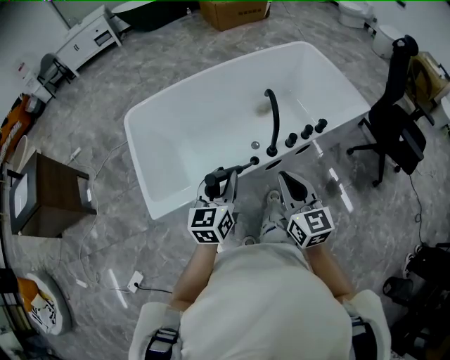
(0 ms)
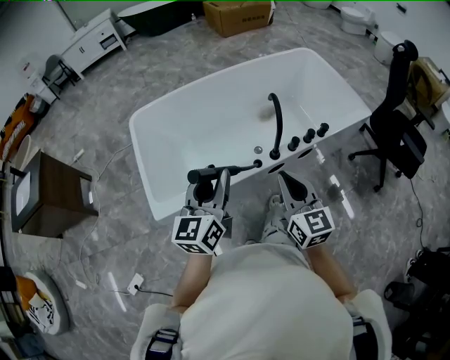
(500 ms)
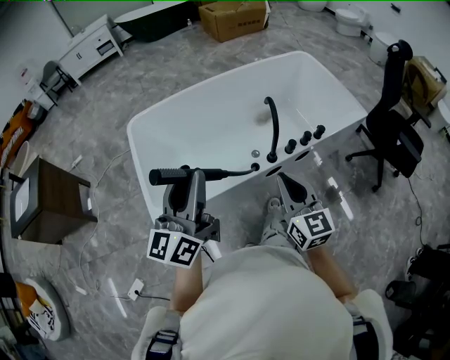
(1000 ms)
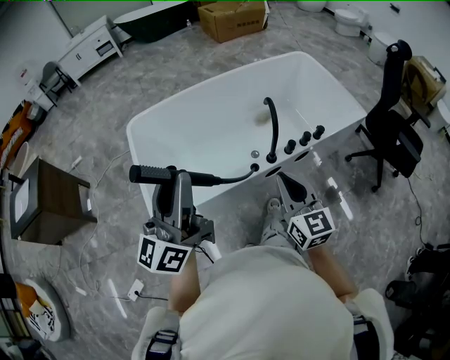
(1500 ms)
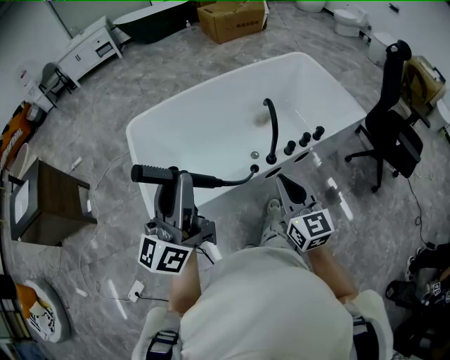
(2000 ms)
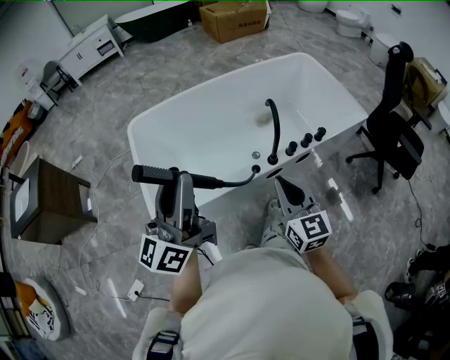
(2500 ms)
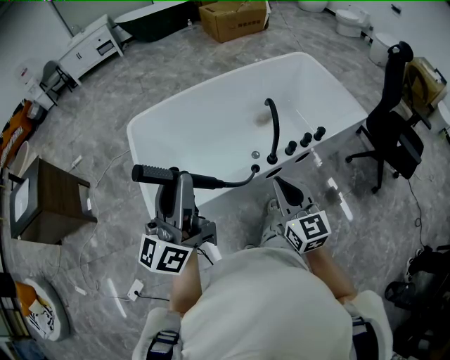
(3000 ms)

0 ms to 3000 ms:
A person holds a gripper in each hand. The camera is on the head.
0 ms to 1500 ms: The left gripper is displaced upward and to the left by about 20 cm, and points its fingers about 40 degrees further upward.
1500 ms to 3000 ms: The grippers make only small movements.

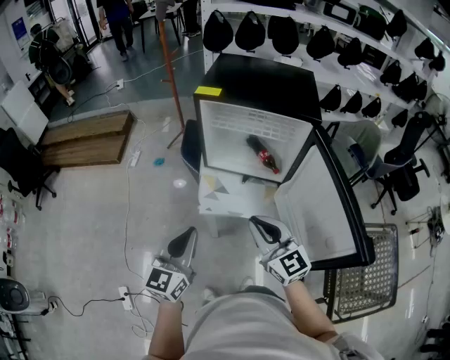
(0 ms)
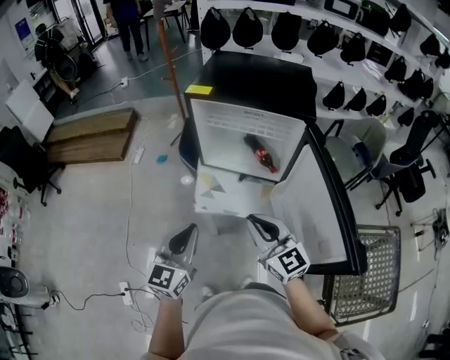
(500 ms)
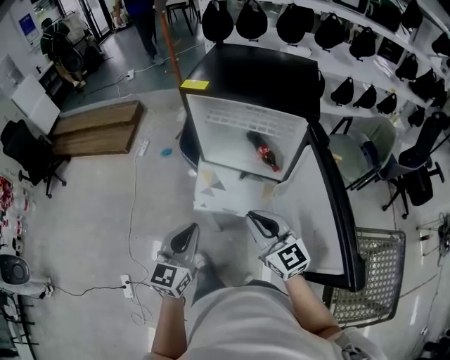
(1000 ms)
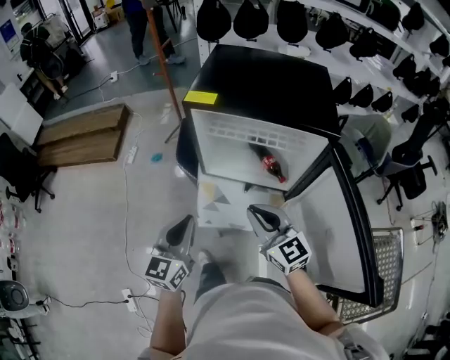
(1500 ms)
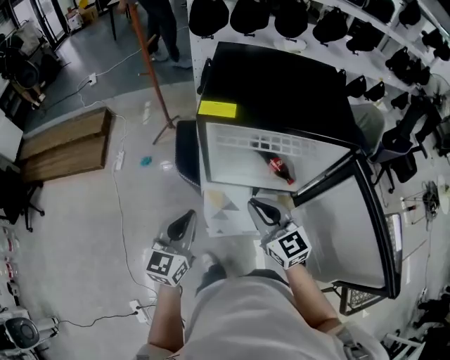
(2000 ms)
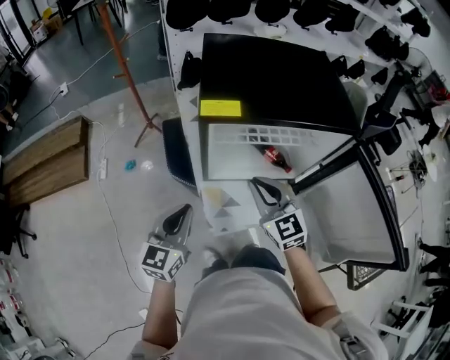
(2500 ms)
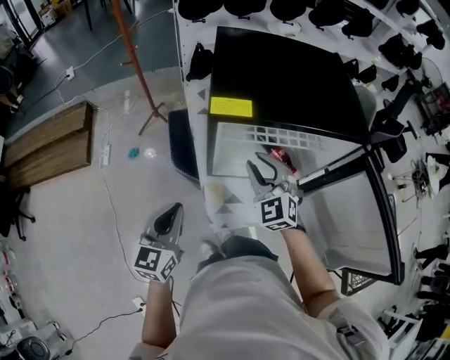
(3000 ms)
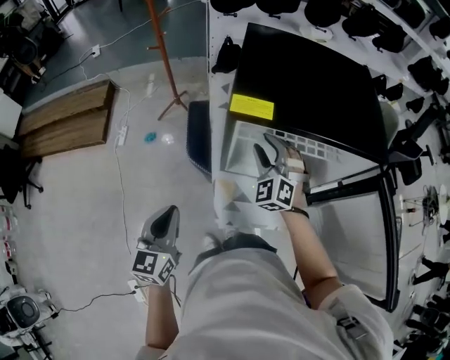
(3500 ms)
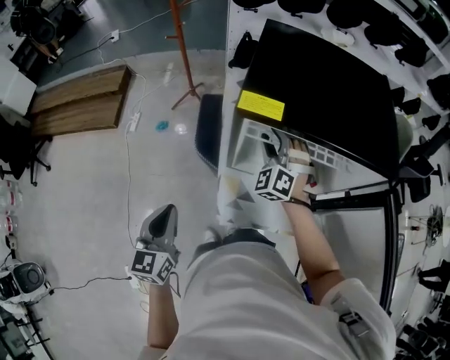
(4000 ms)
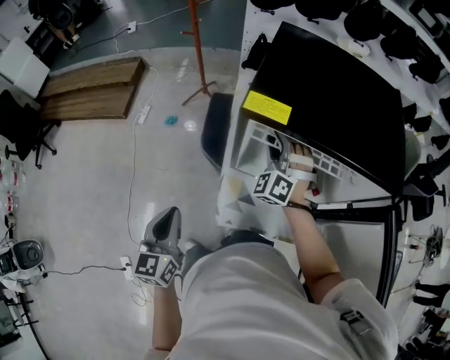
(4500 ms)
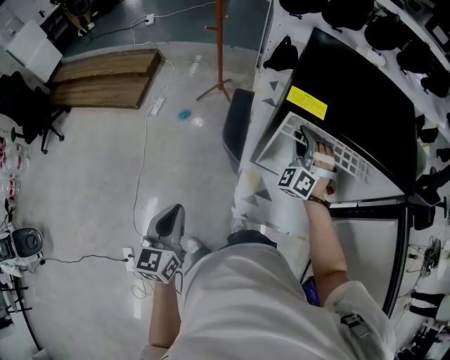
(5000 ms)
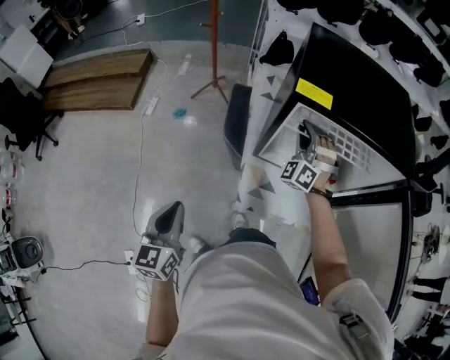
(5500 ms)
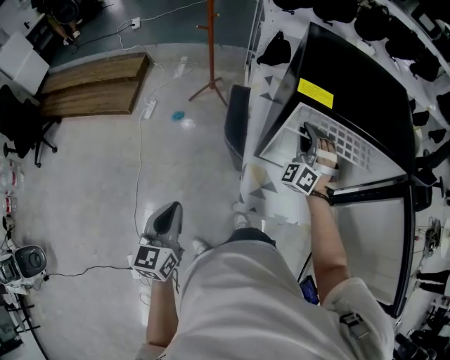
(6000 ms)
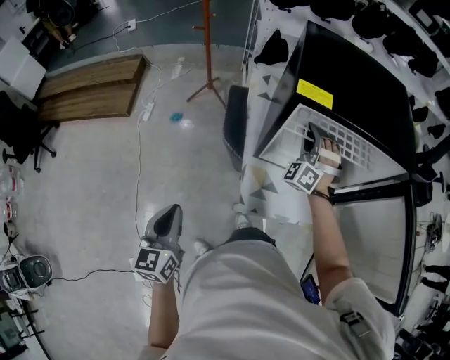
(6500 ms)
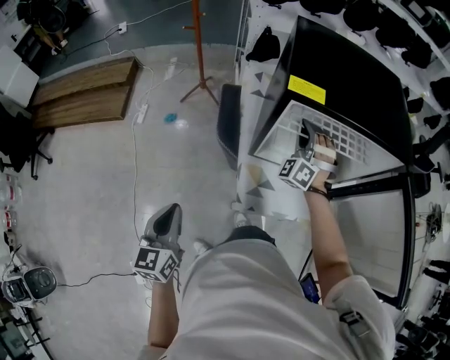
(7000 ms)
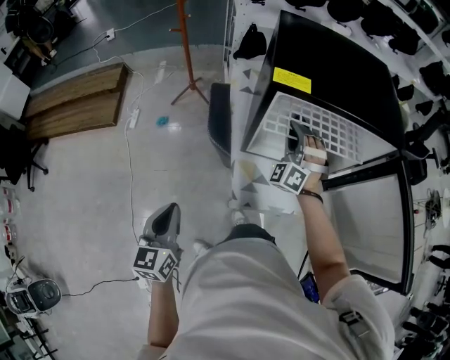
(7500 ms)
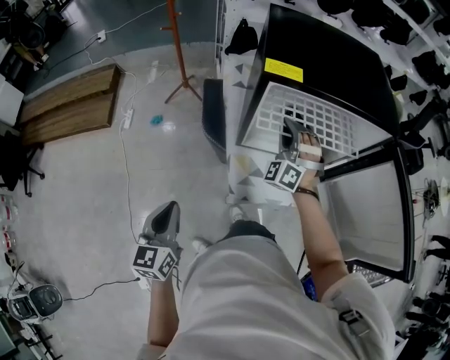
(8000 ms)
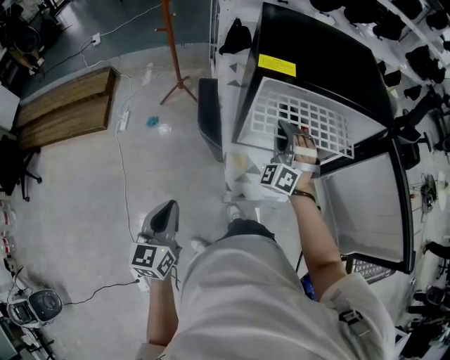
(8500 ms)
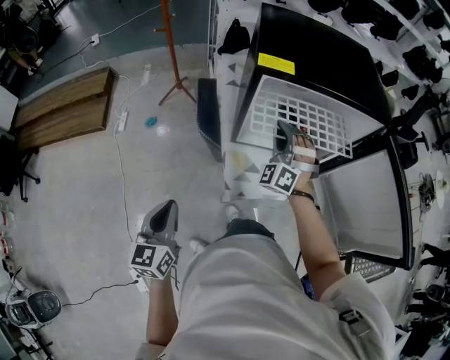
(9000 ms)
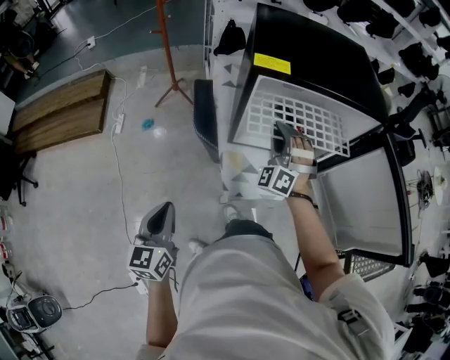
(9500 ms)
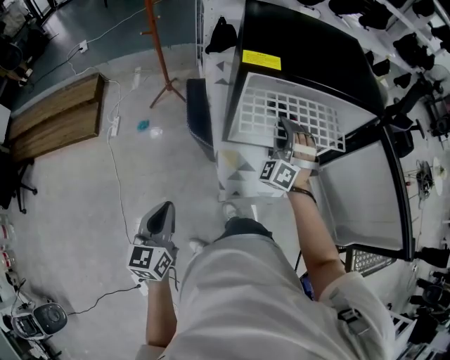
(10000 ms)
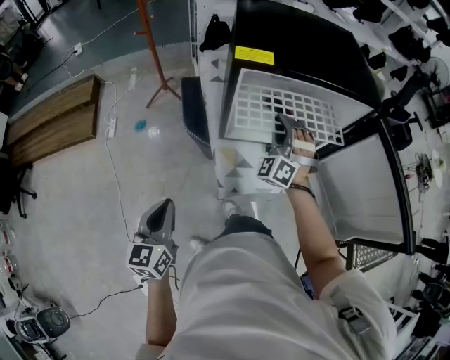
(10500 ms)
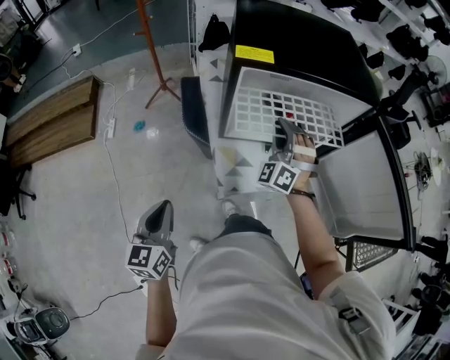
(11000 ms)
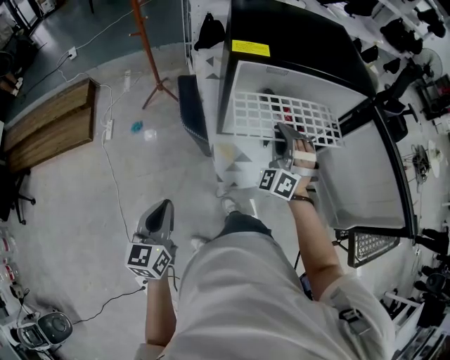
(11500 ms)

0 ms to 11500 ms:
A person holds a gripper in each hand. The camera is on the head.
0 ms to 2000 ms: Both grippers move forward, approximately 20 cm.
2000 ms to 4000 ms: The right gripper goes roughly 20 cm forward, rolls counterclockwise, seen from behind, by approximately 60 degrees, and opens its fingers, while the left gripper moves to the left, some 10 cm.
4000 ms to 6000 ms: The right gripper closes. Meanwhile the left gripper travels to the left and backward by some 10 cm.
6000 ms to 7500 ms: The grippers make only small movements.
7500 ms to 9500 ms: The right gripper moves backward, approximately 5 cm.
9500 ms to 11500 ms: The right gripper shifts by roughly 5 cm.

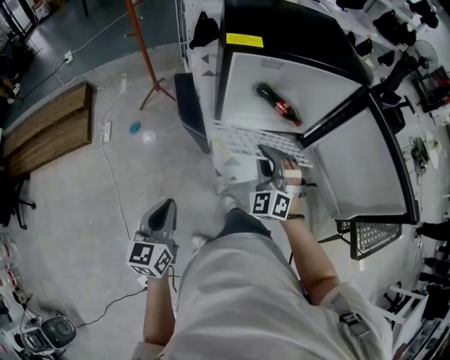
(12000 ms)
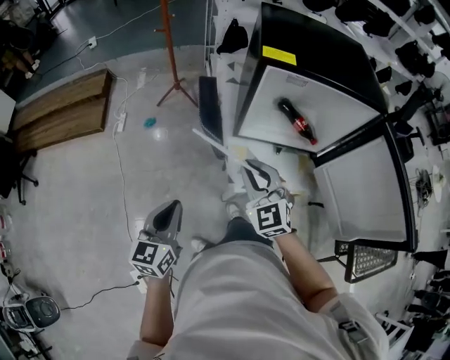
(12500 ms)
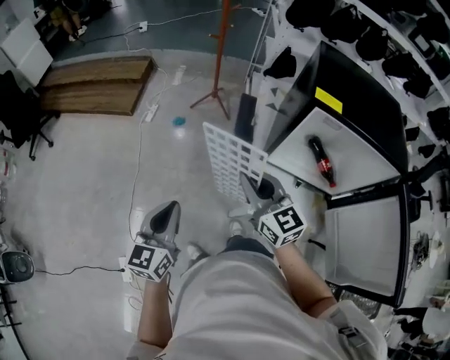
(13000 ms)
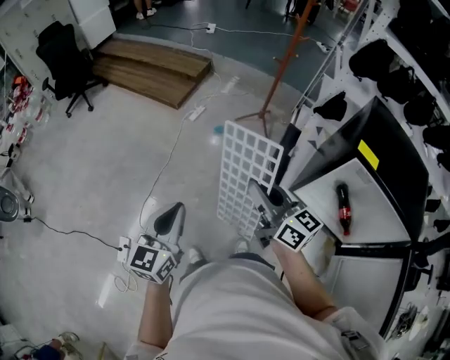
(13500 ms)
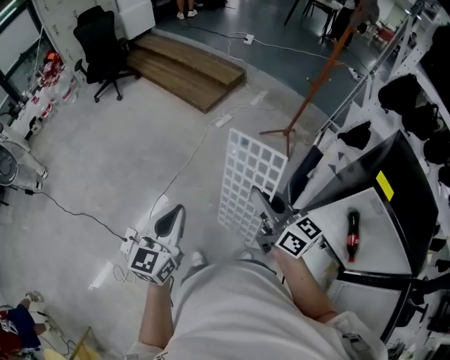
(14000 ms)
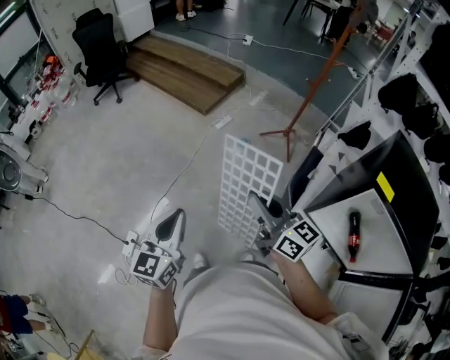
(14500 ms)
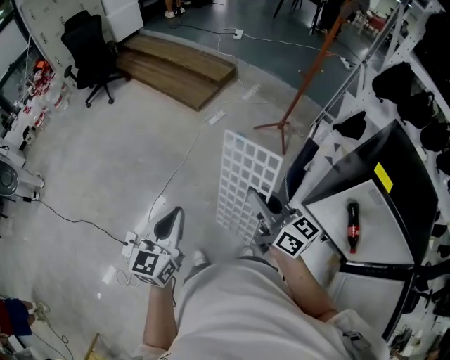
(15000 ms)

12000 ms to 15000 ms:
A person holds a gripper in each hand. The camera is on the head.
12000 ms to 13500 ms: The right gripper changes place by approximately 30 cm, and changes its angle by about 100 degrees; the left gripper moves some 15 cm, and changes its angle by approximately 40 degrees.
13500 ms to 15000 ms: The two grippers go some 5 cm to the left.

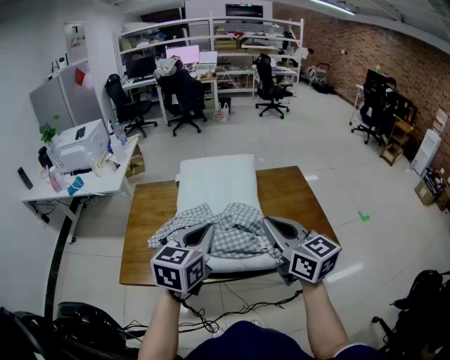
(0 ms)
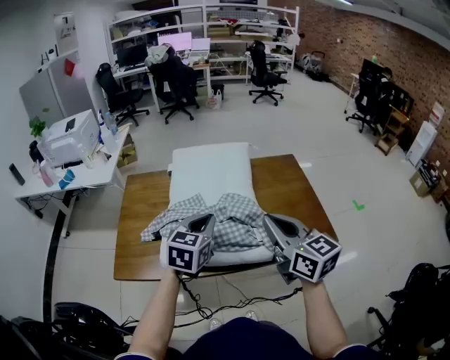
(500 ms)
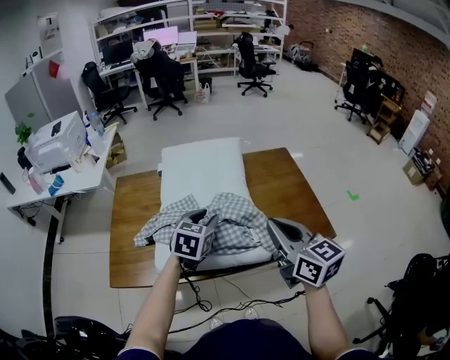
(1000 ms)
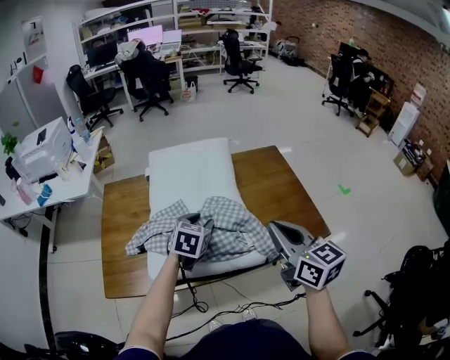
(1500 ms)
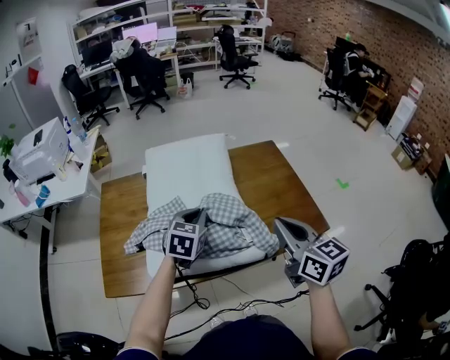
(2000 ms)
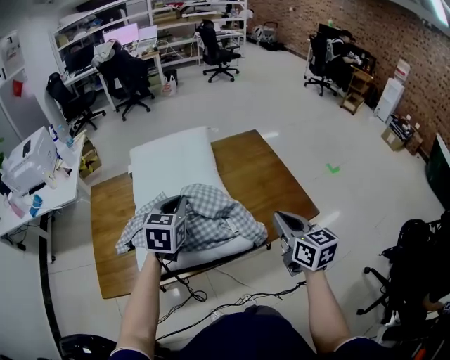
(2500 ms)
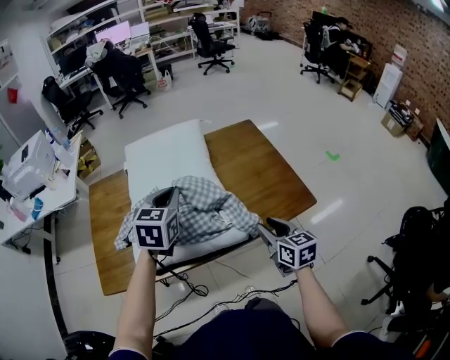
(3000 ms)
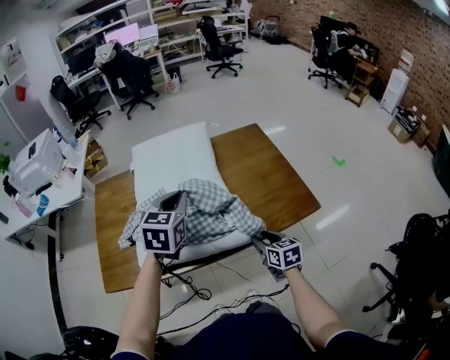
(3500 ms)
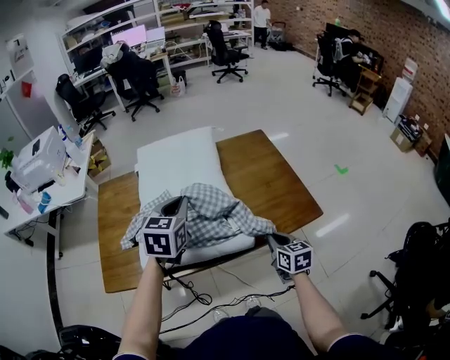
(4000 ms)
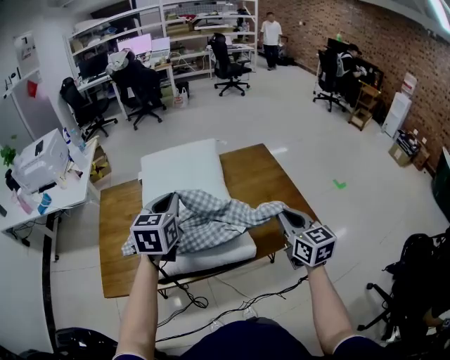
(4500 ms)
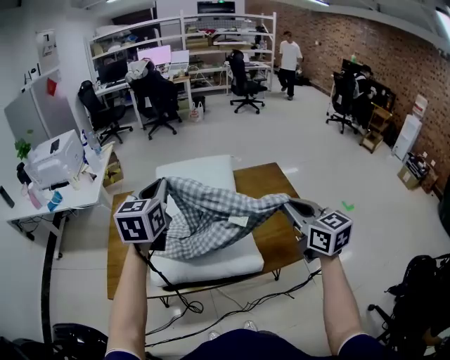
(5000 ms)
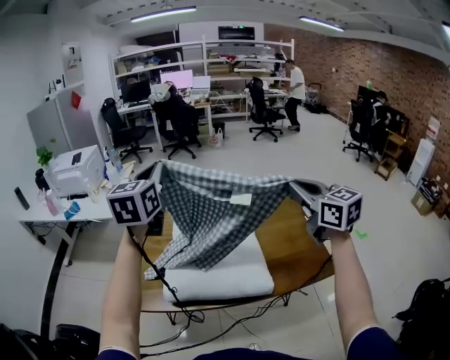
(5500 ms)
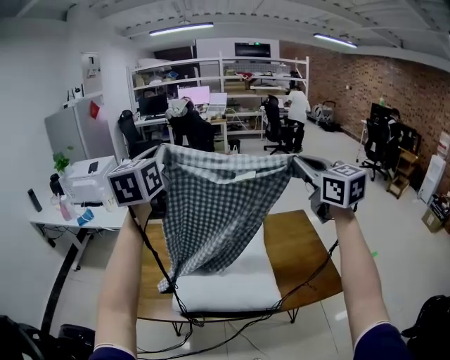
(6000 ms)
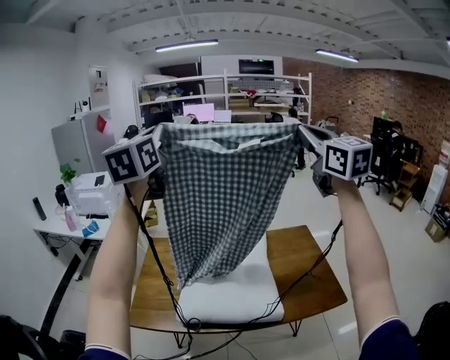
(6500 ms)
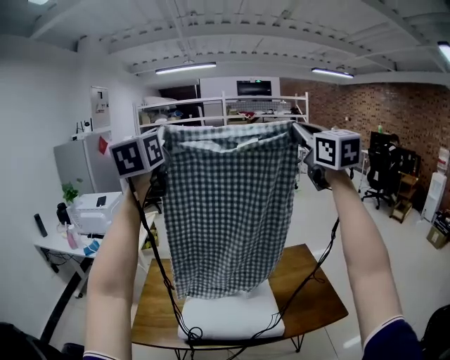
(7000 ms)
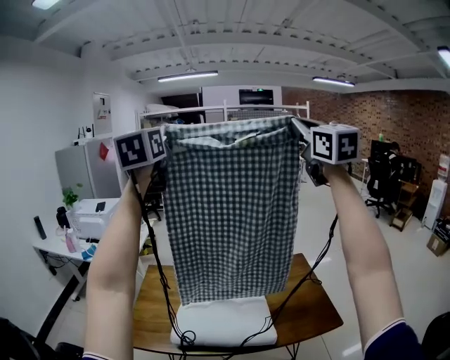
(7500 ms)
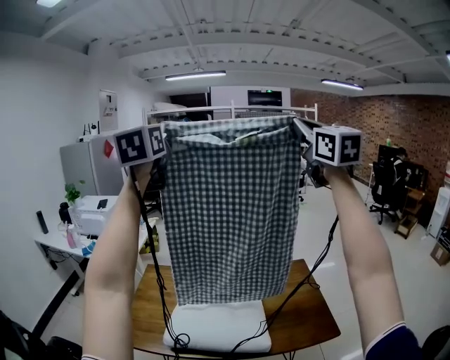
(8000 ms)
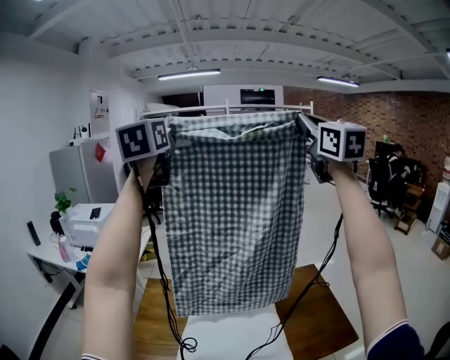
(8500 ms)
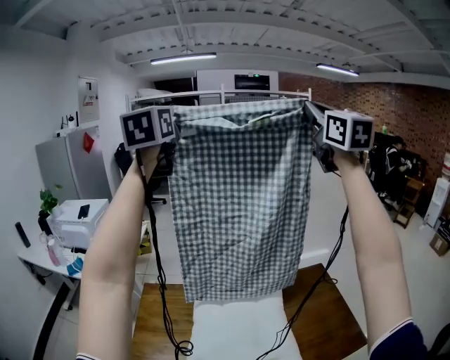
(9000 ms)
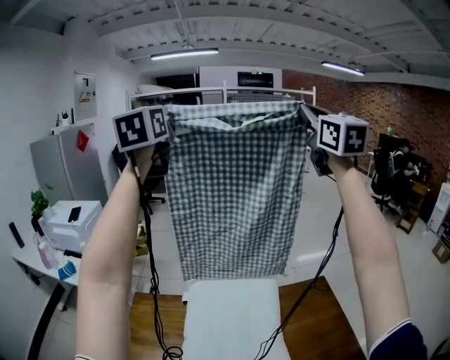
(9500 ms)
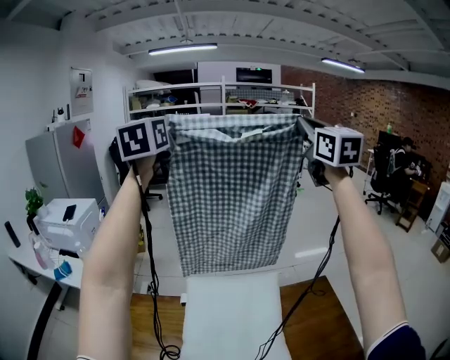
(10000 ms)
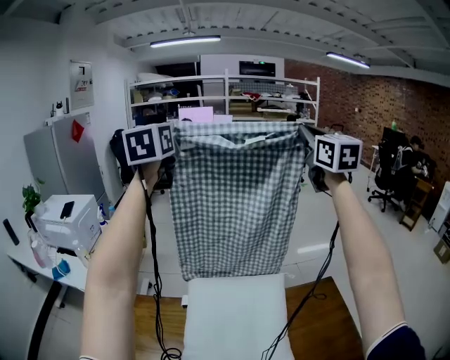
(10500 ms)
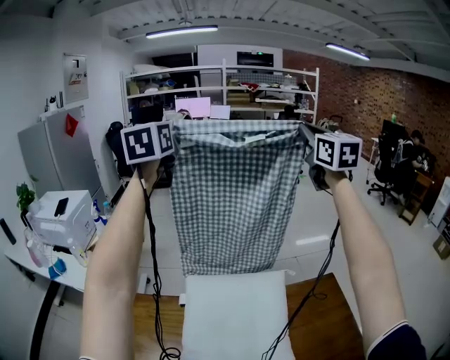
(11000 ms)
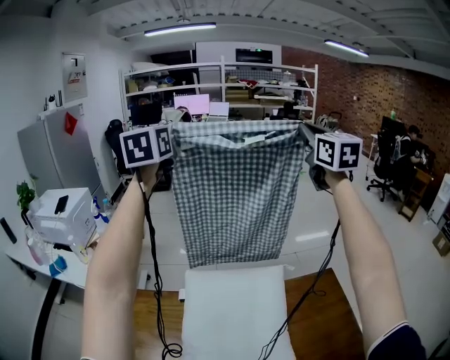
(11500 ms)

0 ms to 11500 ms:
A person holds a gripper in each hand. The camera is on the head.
0 ms to 2000 ms: The left gripper shifts about 20 cm downward and forward, rotates approximately 20 degrees, and opens, then closes again. The right gripper goes roughly 5 cm to the right.
2000 ms to 4000 ms: The right gripper heads downward, covering roughly 20 cm, changes its angle by about 20 degrees, and opens and closes again, while the left gripper shifts about 10 cm upward.
4000 ms to 6000 ms: The left gripper moves upward and to the left, approximately 40 cm, and tips its fingers upward by about 30 degrees; the right gripper goes approximately 50 cm upward, and angles its fingers upward, by approximately 30 degrees.
6000 ms to 7500 ms: Both grippers move upward, approximately 20 cm. The right gripper rotates approximately 20 degrees.
7500 ms to 9500 ms: Both grippers travel together forward, some 30 cm.
9500 ms to 11500 ms: The two grippers go roughly 20 cm downward and forward.
